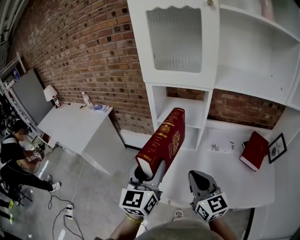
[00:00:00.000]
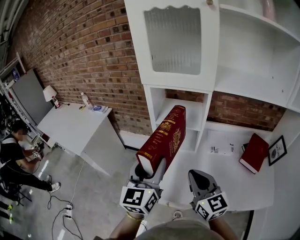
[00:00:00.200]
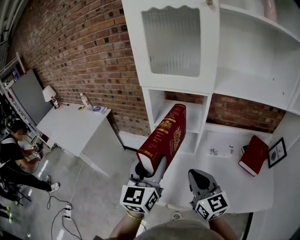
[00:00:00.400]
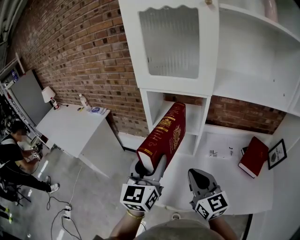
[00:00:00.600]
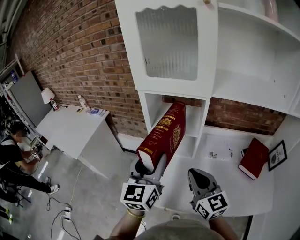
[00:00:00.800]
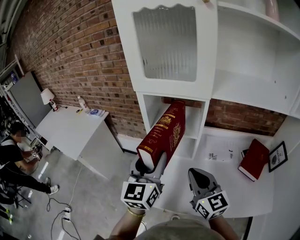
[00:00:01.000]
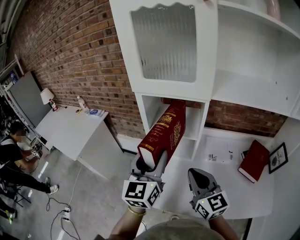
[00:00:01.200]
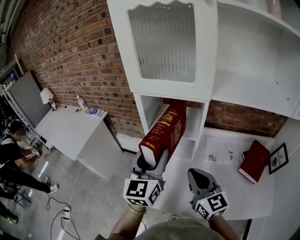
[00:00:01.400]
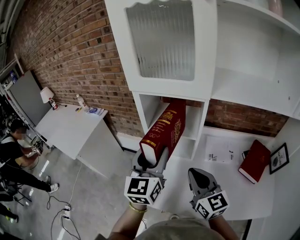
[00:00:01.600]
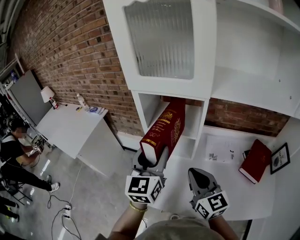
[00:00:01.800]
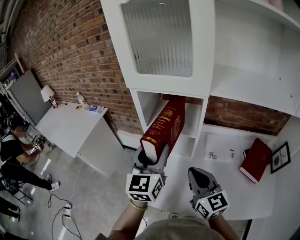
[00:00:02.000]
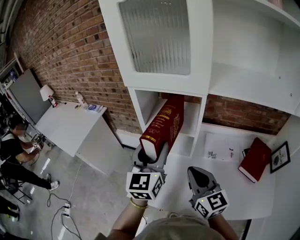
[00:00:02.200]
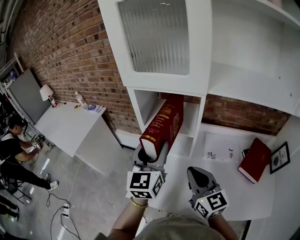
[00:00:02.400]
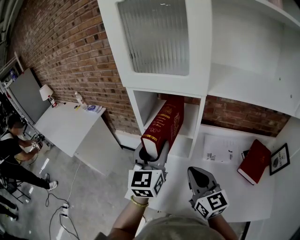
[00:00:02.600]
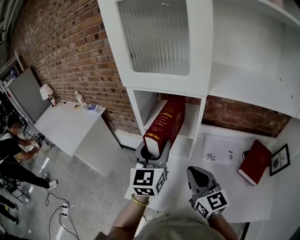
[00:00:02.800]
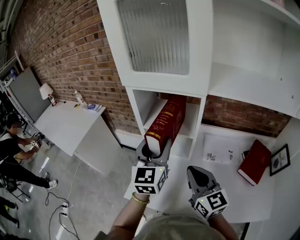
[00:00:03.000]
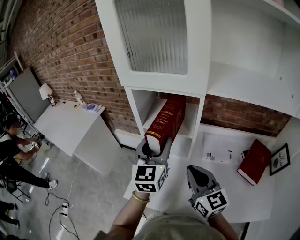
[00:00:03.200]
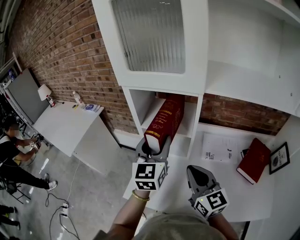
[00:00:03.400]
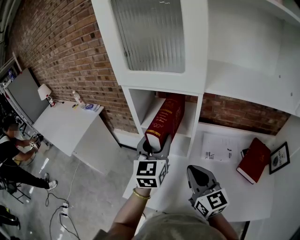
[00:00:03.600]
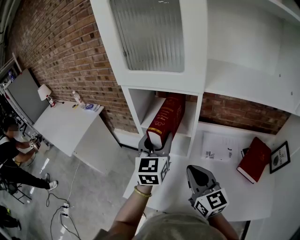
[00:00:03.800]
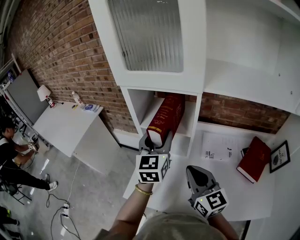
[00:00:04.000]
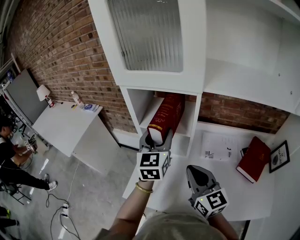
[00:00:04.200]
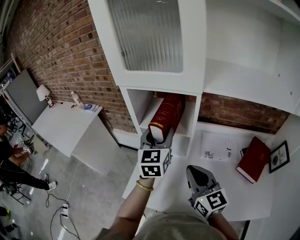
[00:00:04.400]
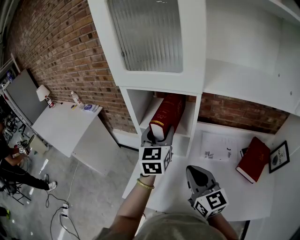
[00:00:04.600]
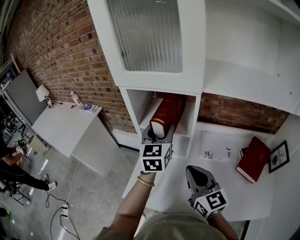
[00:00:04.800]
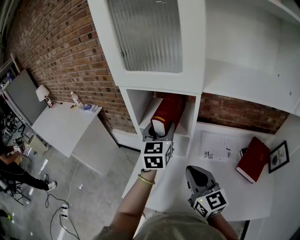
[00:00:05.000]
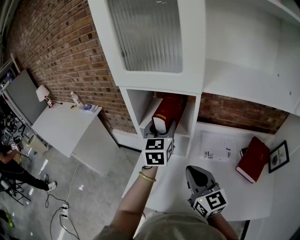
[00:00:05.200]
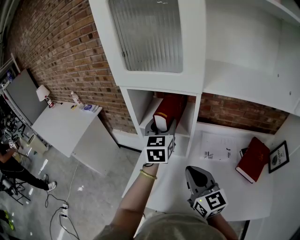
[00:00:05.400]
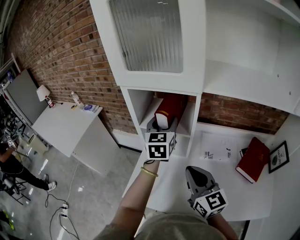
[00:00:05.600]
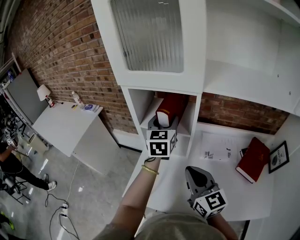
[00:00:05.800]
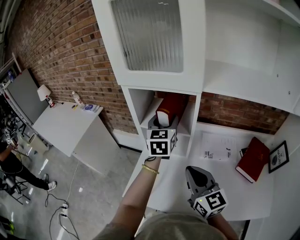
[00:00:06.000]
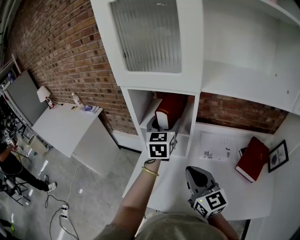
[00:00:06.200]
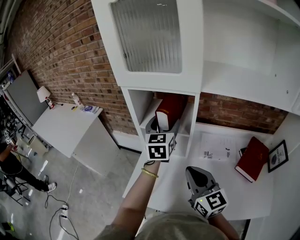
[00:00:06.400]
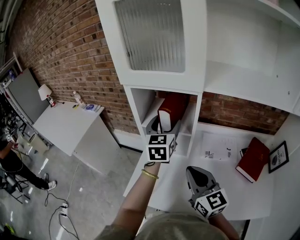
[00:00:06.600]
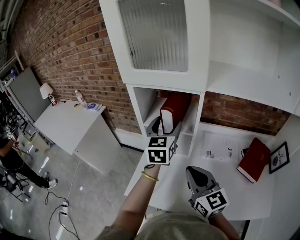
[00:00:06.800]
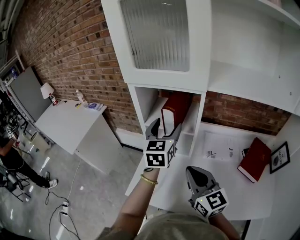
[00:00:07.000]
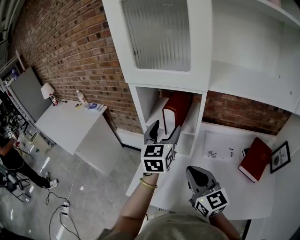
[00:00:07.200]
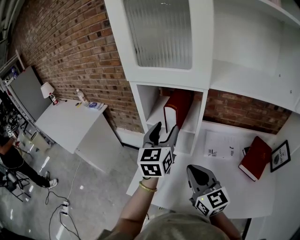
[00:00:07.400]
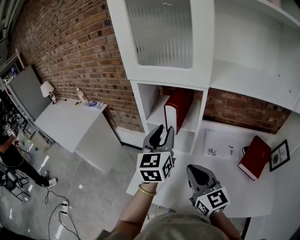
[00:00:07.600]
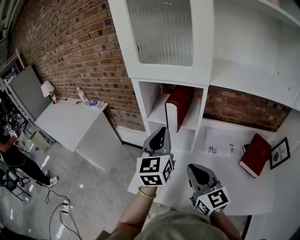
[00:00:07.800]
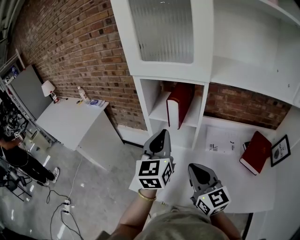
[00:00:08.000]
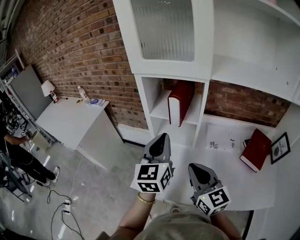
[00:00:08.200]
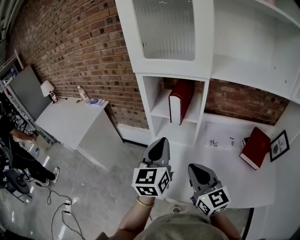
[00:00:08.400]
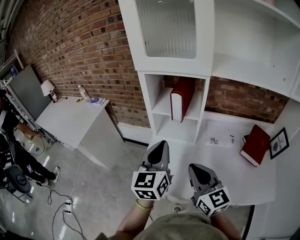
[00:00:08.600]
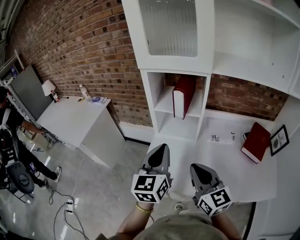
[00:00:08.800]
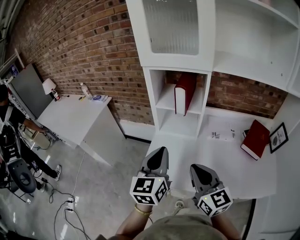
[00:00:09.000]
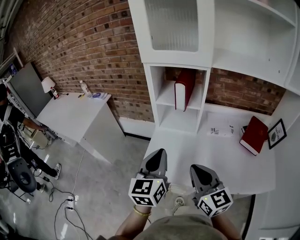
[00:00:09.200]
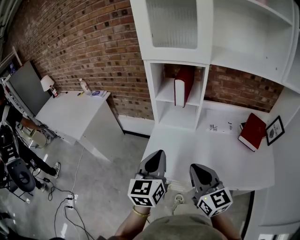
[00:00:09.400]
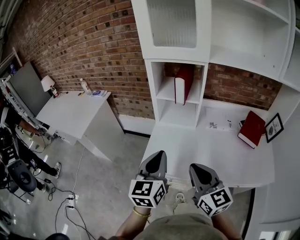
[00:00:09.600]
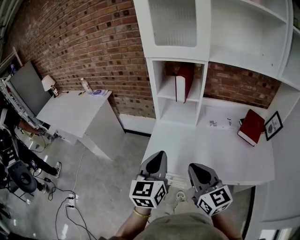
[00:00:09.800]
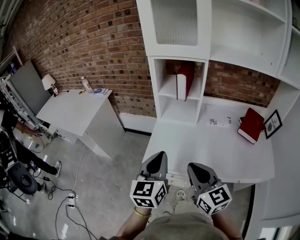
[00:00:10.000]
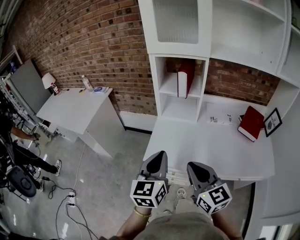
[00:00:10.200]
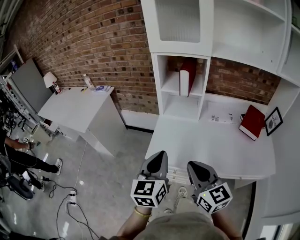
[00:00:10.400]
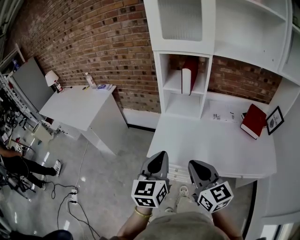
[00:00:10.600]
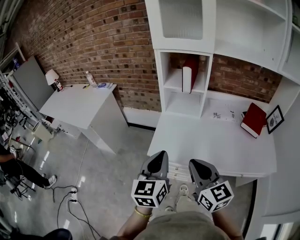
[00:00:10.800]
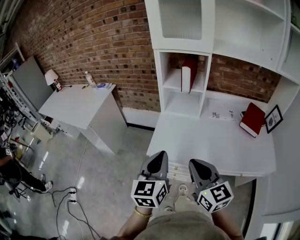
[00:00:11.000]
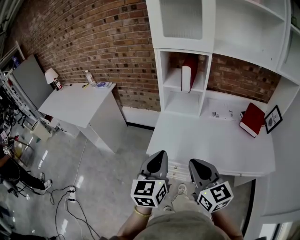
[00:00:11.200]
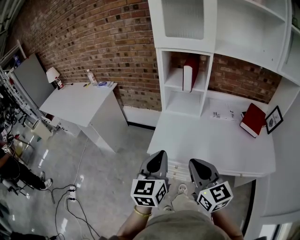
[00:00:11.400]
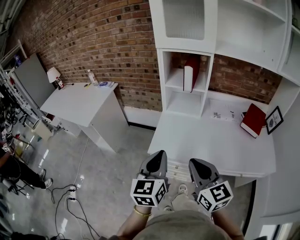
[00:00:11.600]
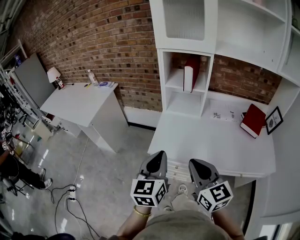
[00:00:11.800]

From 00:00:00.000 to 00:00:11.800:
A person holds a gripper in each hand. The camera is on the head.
From 00:00:00.000 to 00:00:01.400: The right gripper shifts some 10 cm forward, while the left gripper heads forward and to the right, covering some 10 cm.
From 00:00:01.400 to 00:00:03.000: The left gripper changes place by some 5 cm.
From 00:00:03.000 to 00:00:04.400: The left gripper heads forward, covering roughly 5 cm.
From 00:00:04.400 to 00:00:06.000: The left gripper is displaced forward by some 5 cm.
From 00:00:06.000 to 00:00:07.400: The left gripper goes approximately 10 cm backward.
From 00:00:07.400 to 00:00:08.800: The right gripper shifts about 10 cm backward, while the left gripper heads backward and to the left, covering some 15 cm, and closes.
From 00:00:08.800 to 00:00:10.400: Both grippers move backward and to the left, some 15 cm.
From 00:00:10.400 to 00:00:11.800: The grippers move only a little.

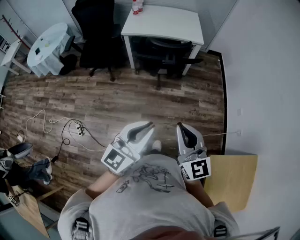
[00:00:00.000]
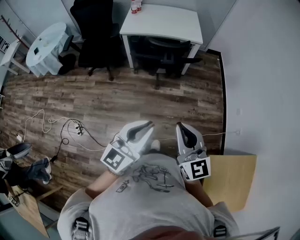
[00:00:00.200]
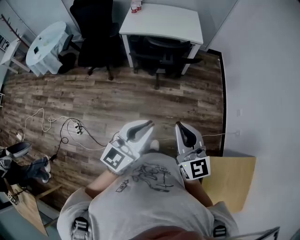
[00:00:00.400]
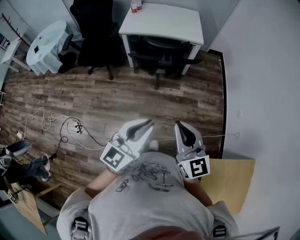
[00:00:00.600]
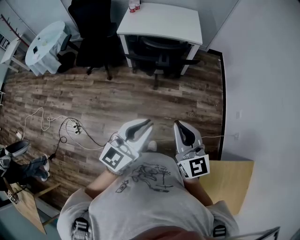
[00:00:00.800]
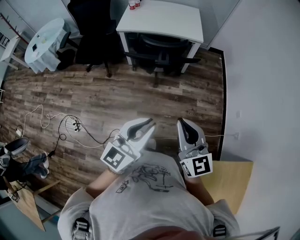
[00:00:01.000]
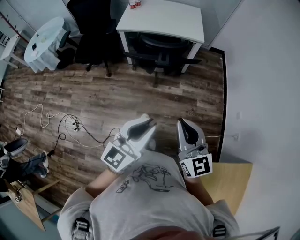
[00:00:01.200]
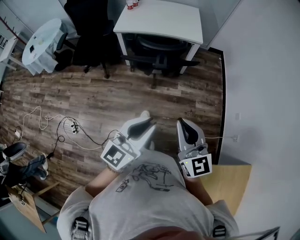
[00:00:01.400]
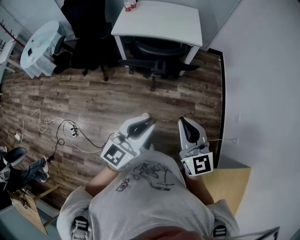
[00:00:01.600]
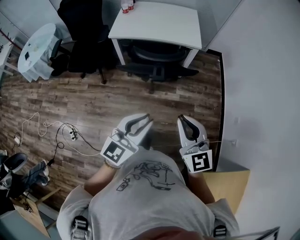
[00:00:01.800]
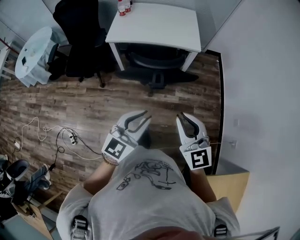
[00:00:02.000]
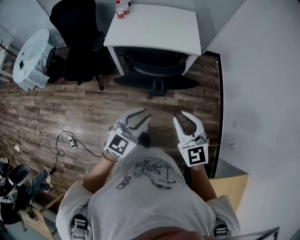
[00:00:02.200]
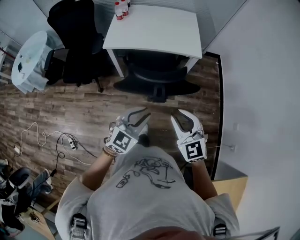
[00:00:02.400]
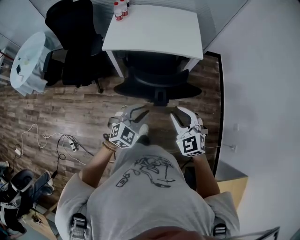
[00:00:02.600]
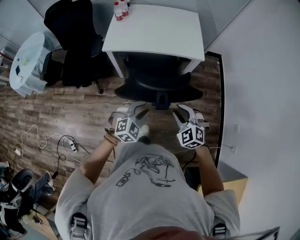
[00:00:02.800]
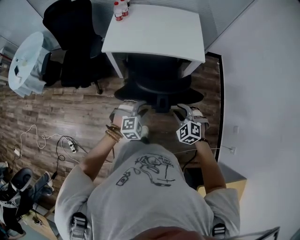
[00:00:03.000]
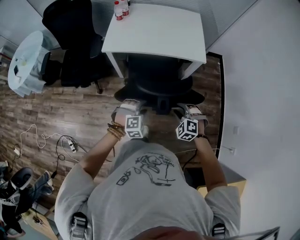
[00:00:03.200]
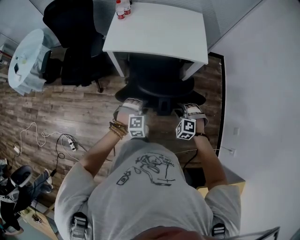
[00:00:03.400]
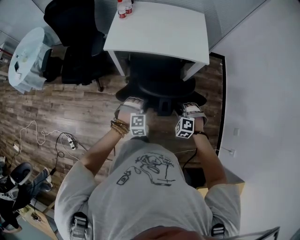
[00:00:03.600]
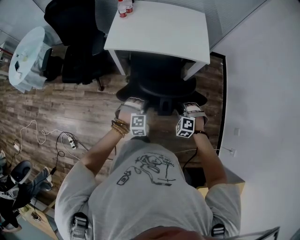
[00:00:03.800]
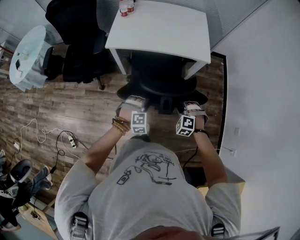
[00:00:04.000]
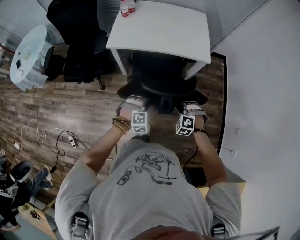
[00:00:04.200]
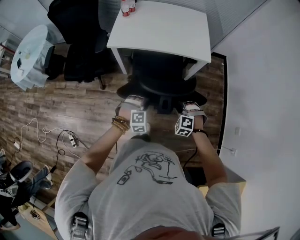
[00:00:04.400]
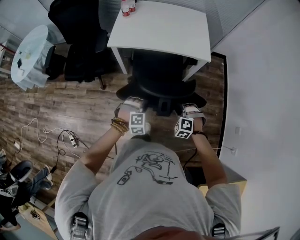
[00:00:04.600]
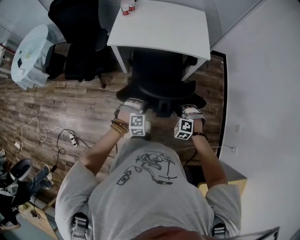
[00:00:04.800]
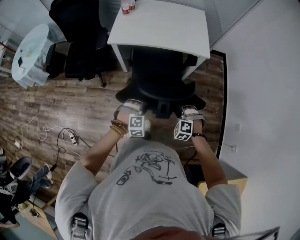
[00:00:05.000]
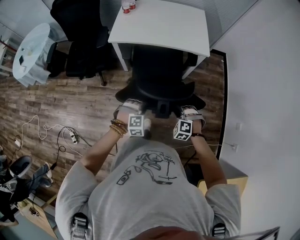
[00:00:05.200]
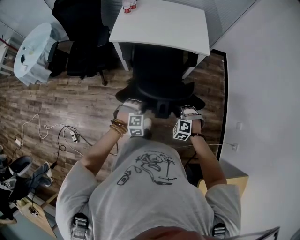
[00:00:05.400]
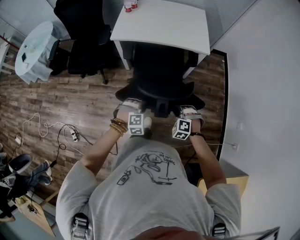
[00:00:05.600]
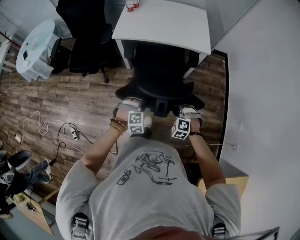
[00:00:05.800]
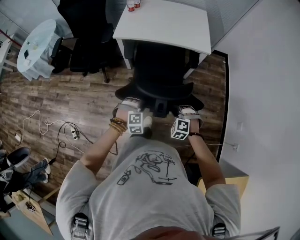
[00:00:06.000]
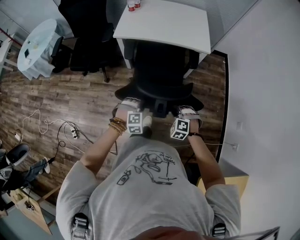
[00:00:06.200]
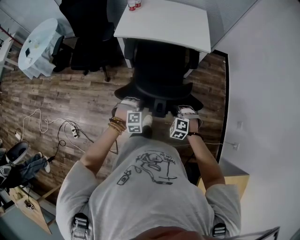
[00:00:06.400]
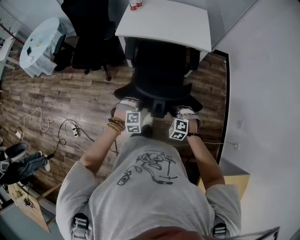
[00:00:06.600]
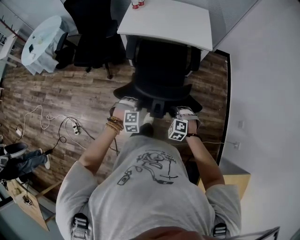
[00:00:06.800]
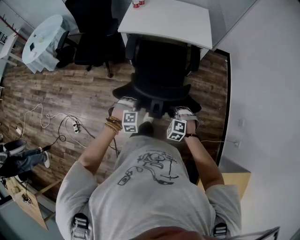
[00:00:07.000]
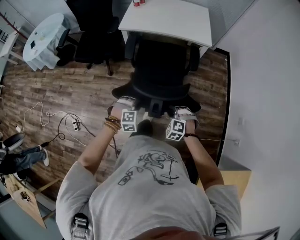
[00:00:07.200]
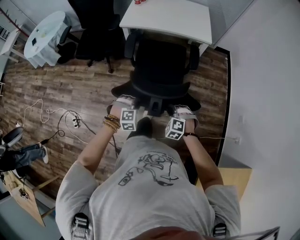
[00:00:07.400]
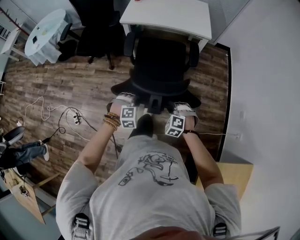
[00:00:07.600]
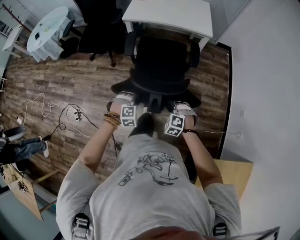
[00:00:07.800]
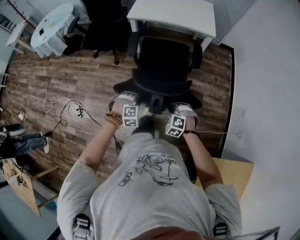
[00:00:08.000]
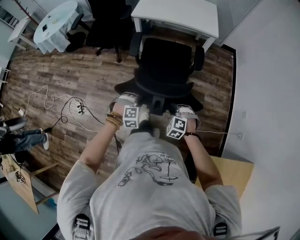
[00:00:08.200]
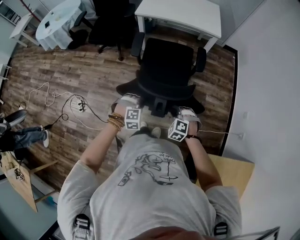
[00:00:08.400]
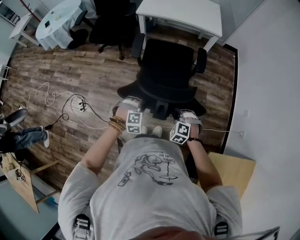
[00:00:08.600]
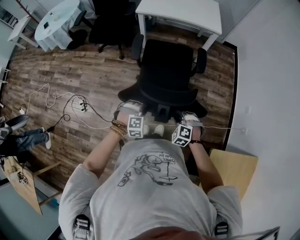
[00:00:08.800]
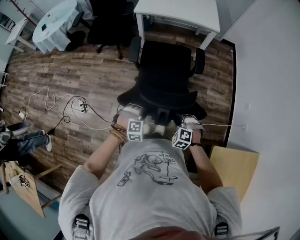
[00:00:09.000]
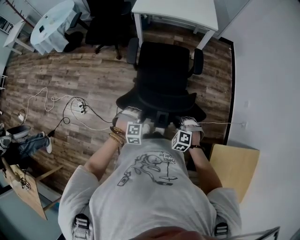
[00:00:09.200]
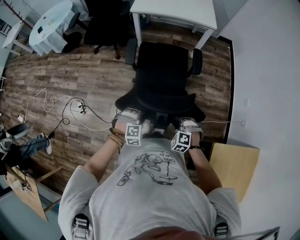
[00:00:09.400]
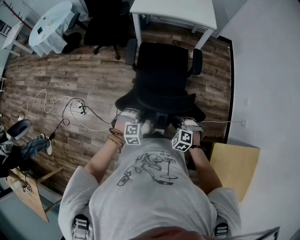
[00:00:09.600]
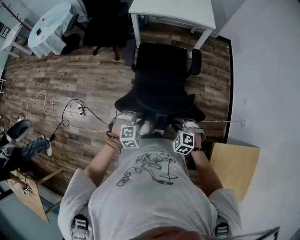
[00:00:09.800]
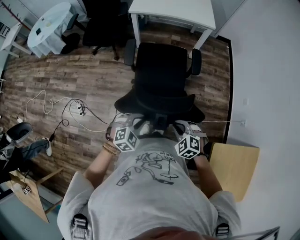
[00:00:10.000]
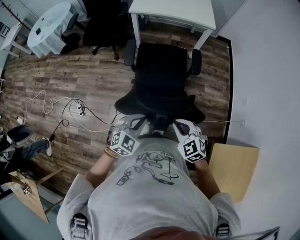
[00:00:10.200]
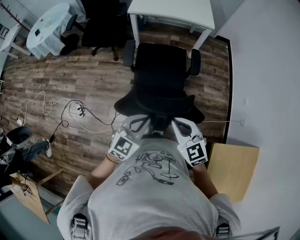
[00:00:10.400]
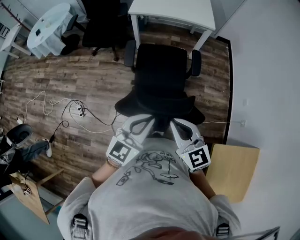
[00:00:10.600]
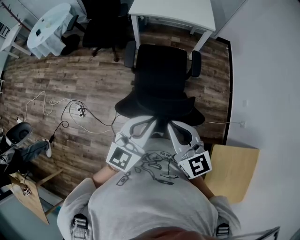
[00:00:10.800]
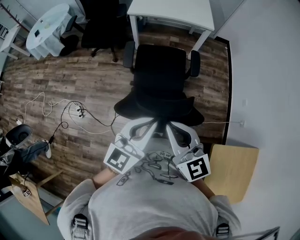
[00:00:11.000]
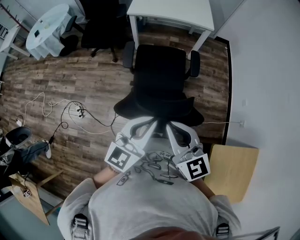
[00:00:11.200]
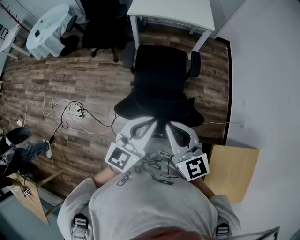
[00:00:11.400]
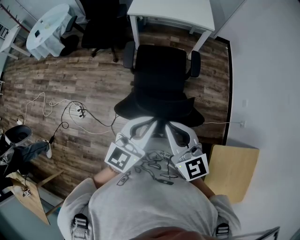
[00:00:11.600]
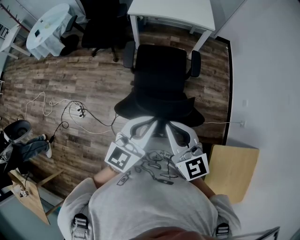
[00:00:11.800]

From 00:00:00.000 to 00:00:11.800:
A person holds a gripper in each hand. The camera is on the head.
From 00:00:00.000 to 00:00:01.400: The grippers both shift forward and to the right by roughly 15 cm.
From 00:00:01.400 to 00:00:03.000: Both grippers move forward and downward, about 40 cm. The left gripper tilts its fingers approximately 50 degrees downward, and opens. Meanwhile the right gripper tilts its fingers about 50 degrees downward, and opens up.
From 00:00:03.000 to 00:00:04.400: Both grippers travel together downward, some 10 cm. The right gripper rotates some 20 degrees.
From 00:00:04.400 to 00:00:06.000: The two grippers go some 15 cm backward.
From 00:00:06.000 to 00:00:07.400: The grippers both shift backward by approximately 15 cm.
From 00:00:07.400 to 00:00:08.800: The grippers both shift backward by approximately 20 cm.
From 00:00:08.800 to 00:00:10.400: The grippers both shift upward by approximately 20 cm. The right gripper angles its fingers upward, by some 30 degrees, and closes up, while the left gripper tips its fingers upward by about 40 degrees, and closes up.
From 00:00:10.400 to 00:00:11.800: Both grippers move upward, approximately 10 cm. The right gripper swivels approximately 20 degrees, while the left gripper rotates roughly 20 degrees.
